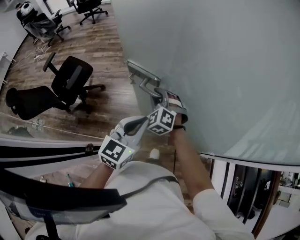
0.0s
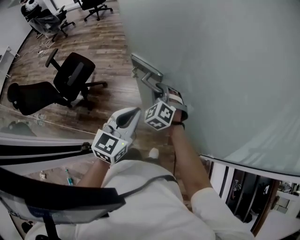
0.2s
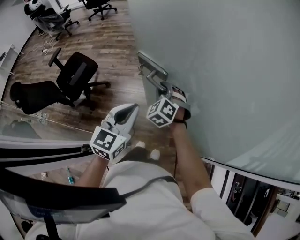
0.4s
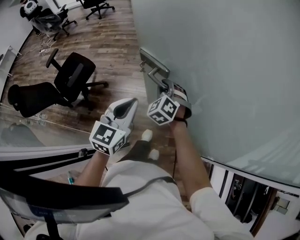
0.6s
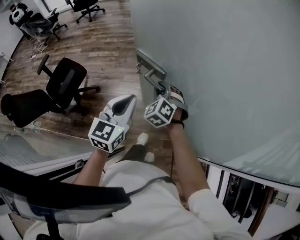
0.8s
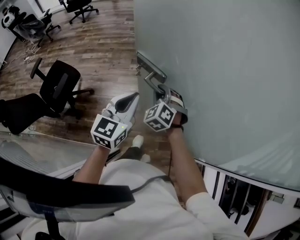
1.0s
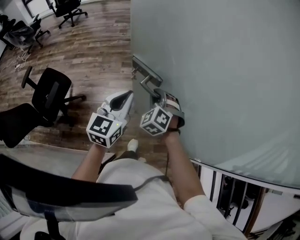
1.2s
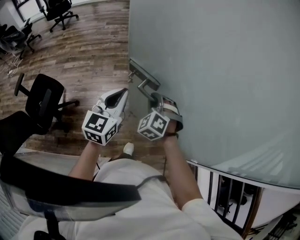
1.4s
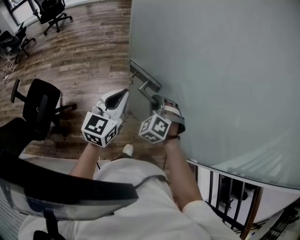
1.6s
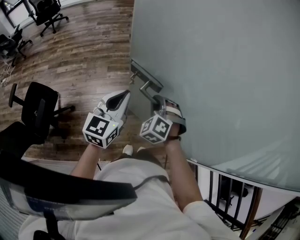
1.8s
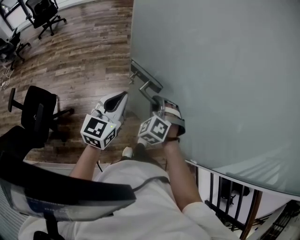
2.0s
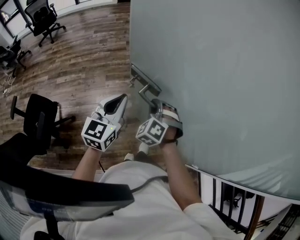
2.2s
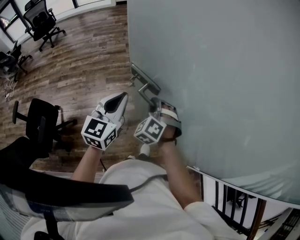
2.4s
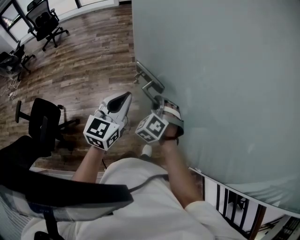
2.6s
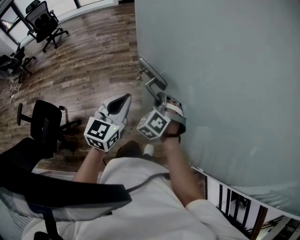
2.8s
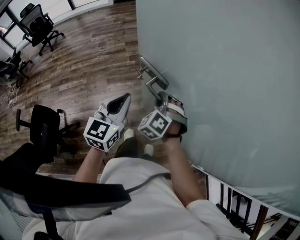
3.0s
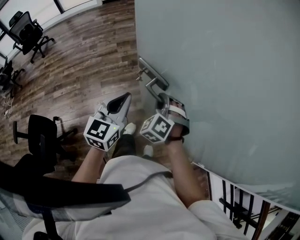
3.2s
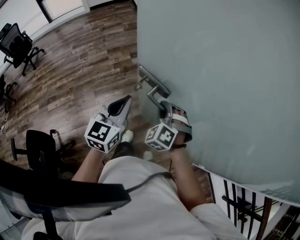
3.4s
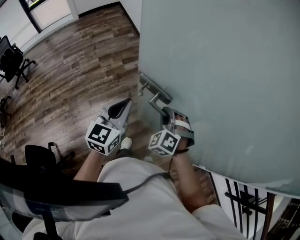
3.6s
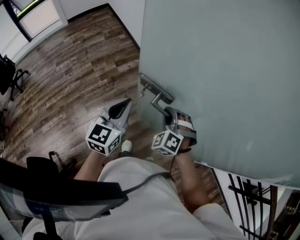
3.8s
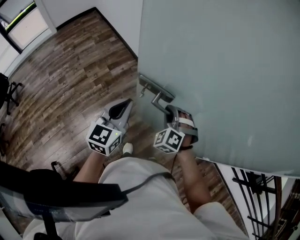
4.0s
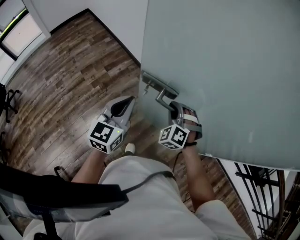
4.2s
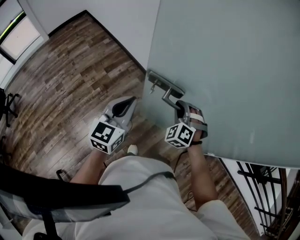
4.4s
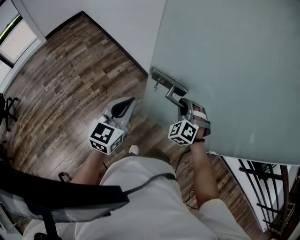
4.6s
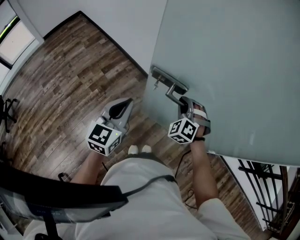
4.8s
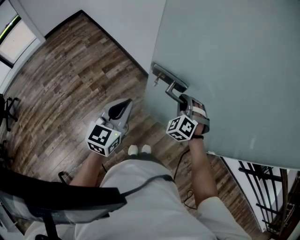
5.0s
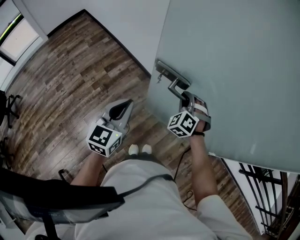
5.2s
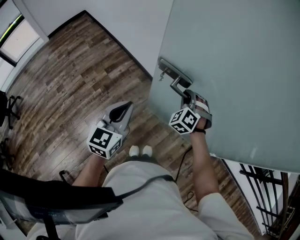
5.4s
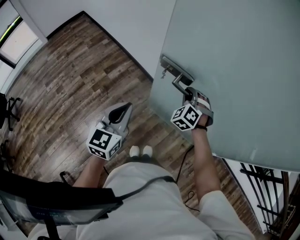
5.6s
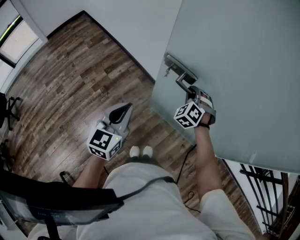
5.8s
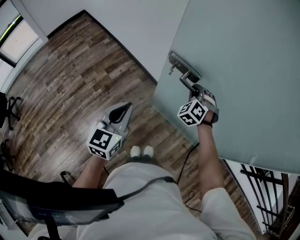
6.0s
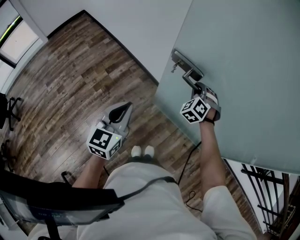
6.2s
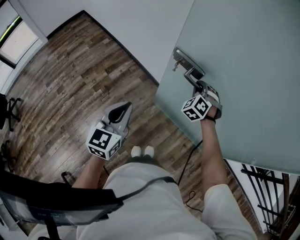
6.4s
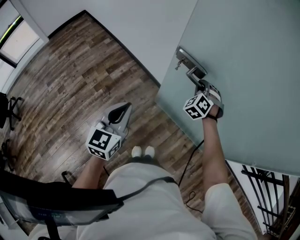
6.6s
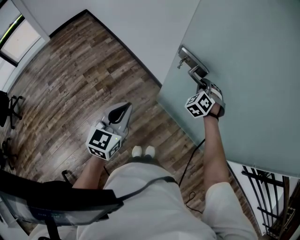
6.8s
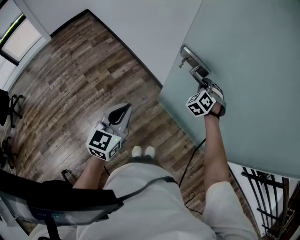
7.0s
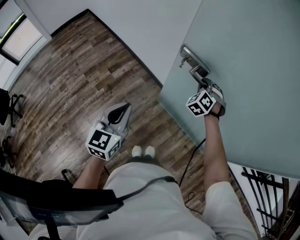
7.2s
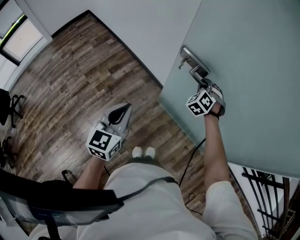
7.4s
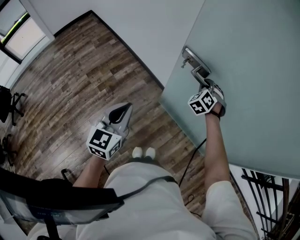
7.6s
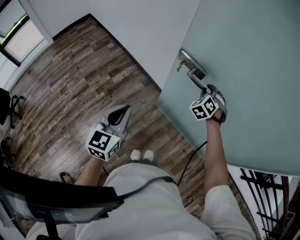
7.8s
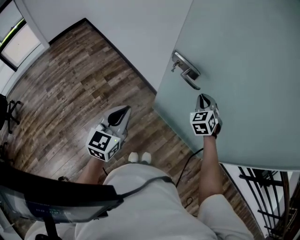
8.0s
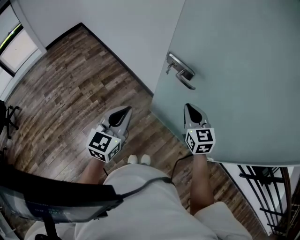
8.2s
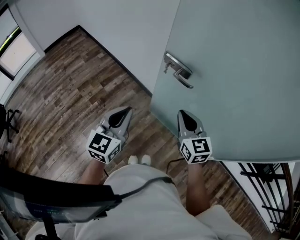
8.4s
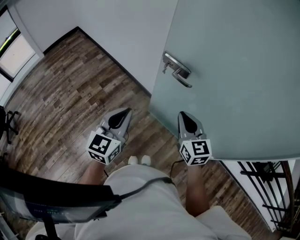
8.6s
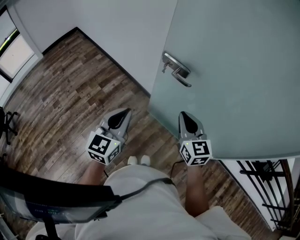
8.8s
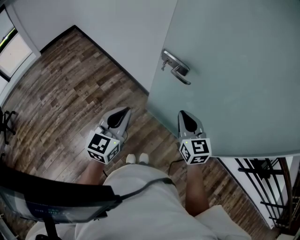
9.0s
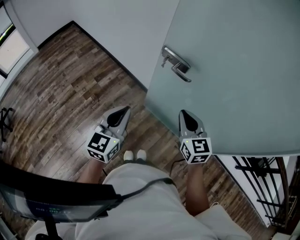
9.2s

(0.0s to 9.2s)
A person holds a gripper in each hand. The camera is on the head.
0.0s - 1.6s: The left gripper heads forward, covering some 30 cm; the right gripper goes approximately 20 cm forward and to the right, and swivels about 20 degrees.
1.6s - 3.0s: Both grippers move forward and to the right, approximately 25 cm.
3.0s - 4.6s: The right gripper moves about 15 cm, and swivels some 30 degrees, while the left gripper changes place by roughly 20 cm, and swivels roughly 40 degrees.
4.6s - 6.2s: The right gripper shifts some 15 cm forward.
6.2s - 7.6s: The right gripper shifts roughly 5 cm forward.
7.6s - 9.2s: The right gripper goes approximately 30 cm backward and upward, and rotates around the line of its fingers by roughly 50 degrees, clockwise from behind. The left gripper changes place by about 5 cm.

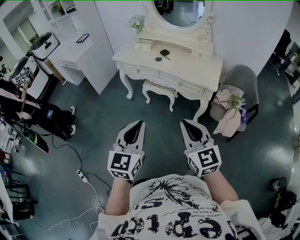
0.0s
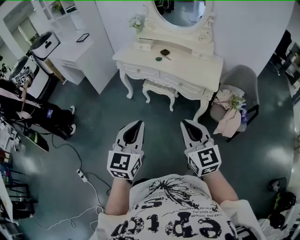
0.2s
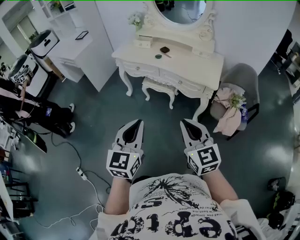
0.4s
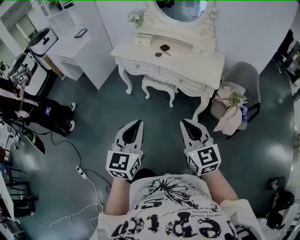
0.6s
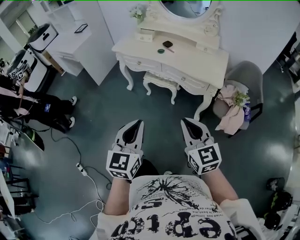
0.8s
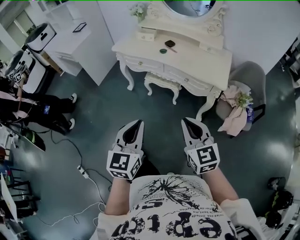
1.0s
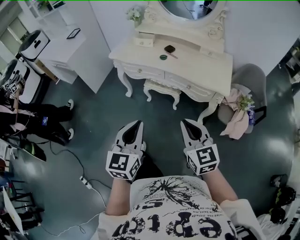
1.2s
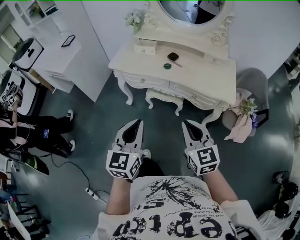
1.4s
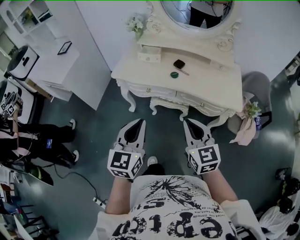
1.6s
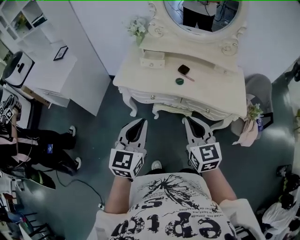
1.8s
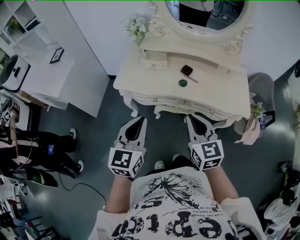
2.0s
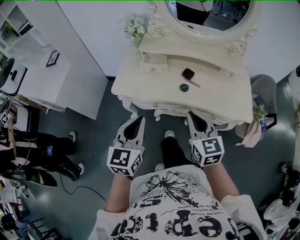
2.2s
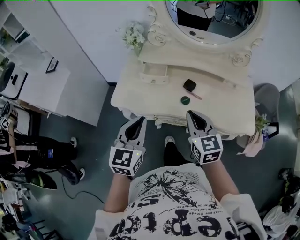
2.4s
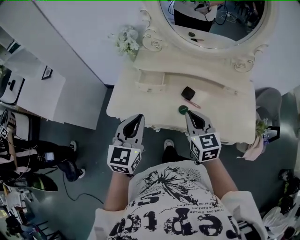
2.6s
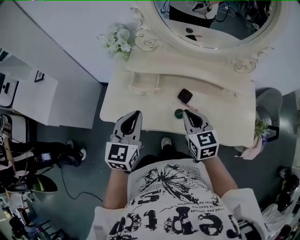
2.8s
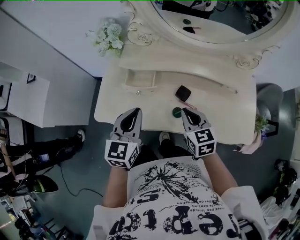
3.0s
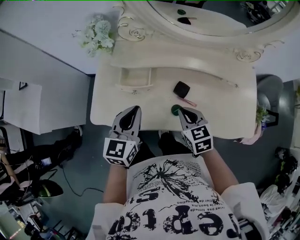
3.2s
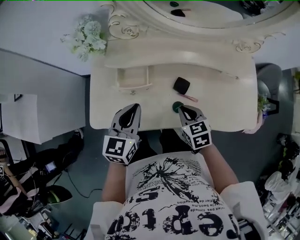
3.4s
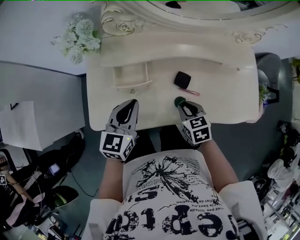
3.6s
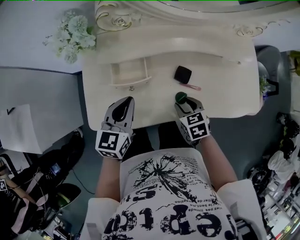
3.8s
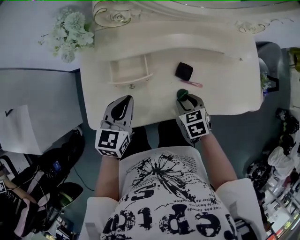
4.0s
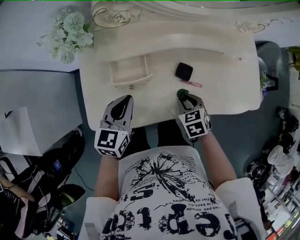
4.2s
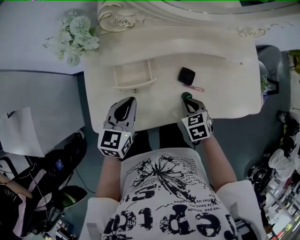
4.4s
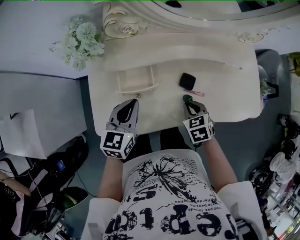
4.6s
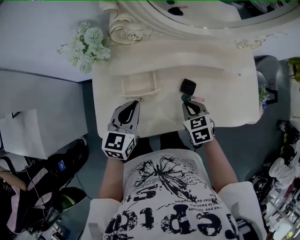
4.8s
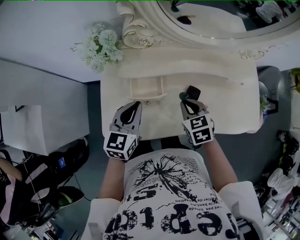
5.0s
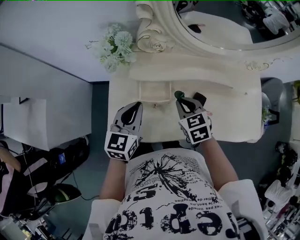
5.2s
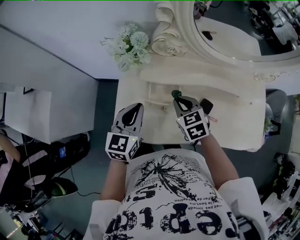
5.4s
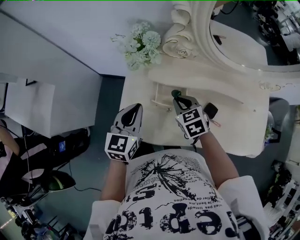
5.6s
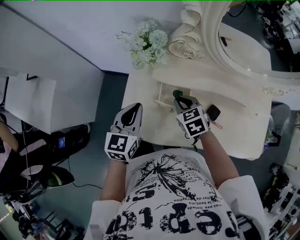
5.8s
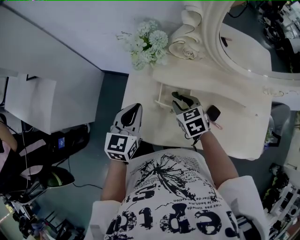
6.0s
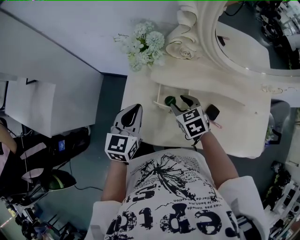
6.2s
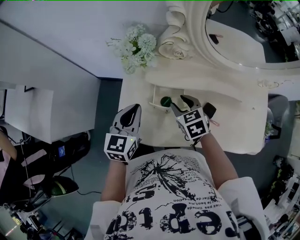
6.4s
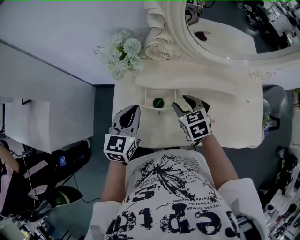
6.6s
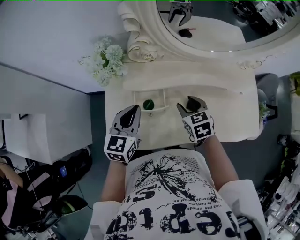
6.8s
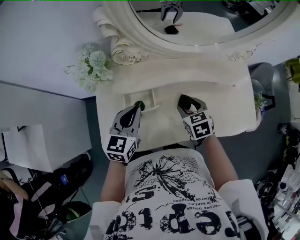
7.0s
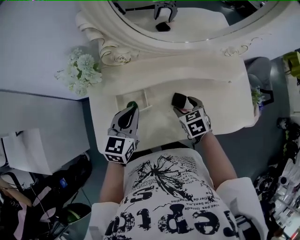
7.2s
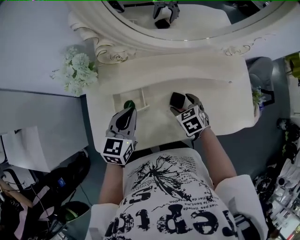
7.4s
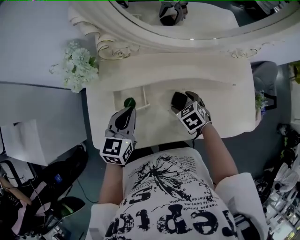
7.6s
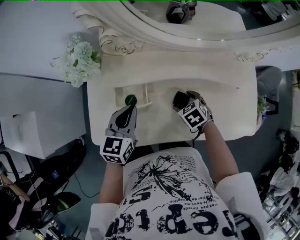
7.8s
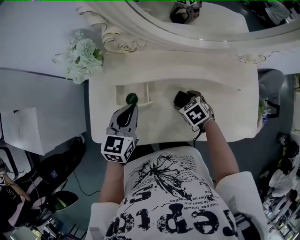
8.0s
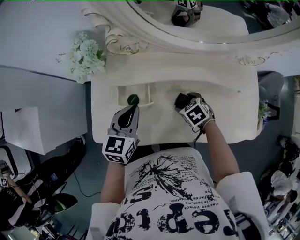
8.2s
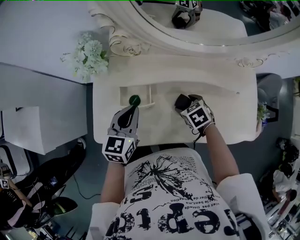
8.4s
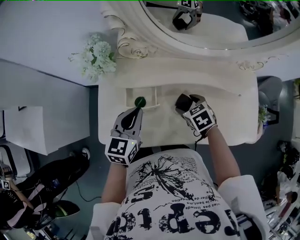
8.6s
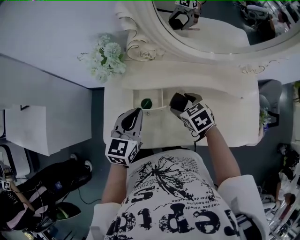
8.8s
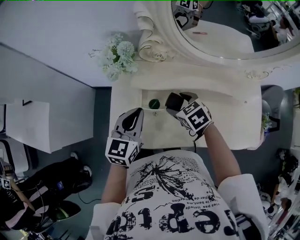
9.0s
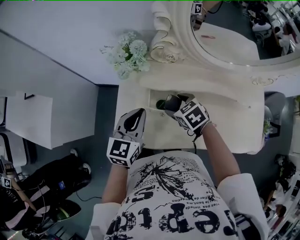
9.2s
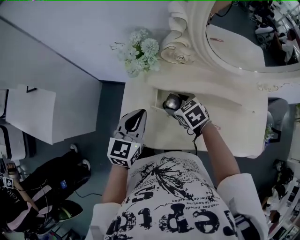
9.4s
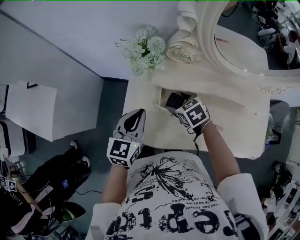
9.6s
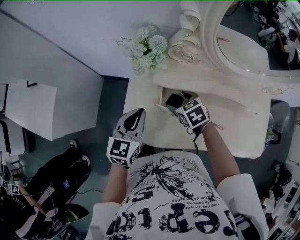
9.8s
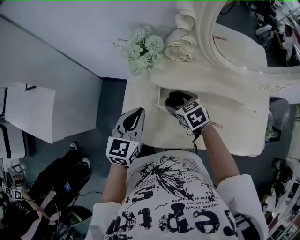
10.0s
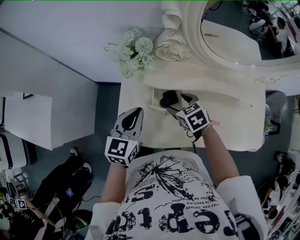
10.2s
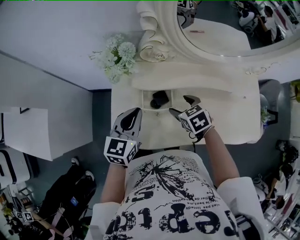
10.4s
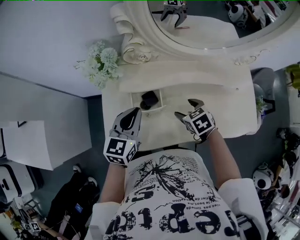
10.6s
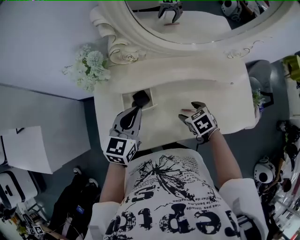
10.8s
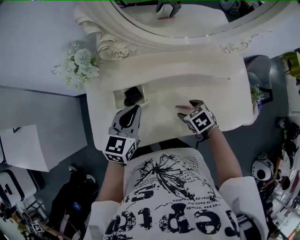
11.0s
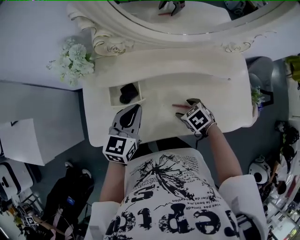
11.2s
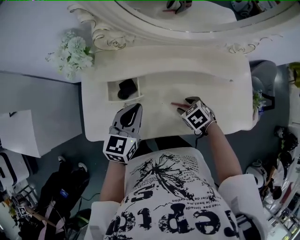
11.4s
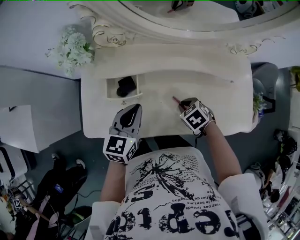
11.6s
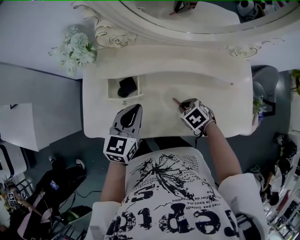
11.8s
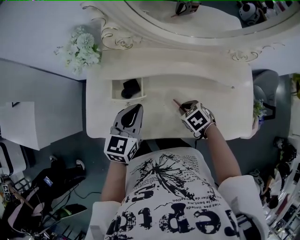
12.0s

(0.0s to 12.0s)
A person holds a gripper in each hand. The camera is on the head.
0.0s - 1.6s: Both grippers travel together forward and to the left, some 35 cm.
1.6s - 3.0s: Both grippers move forward, some 40 cm.
3.0s - 4.4s: The left gripper is displaced downward and forward by approximately 10 cm, and rotates roughly 20 degrees; the right gripper is displaced downward by about 15 cm, changes its angle by approximately 30 degrees, and opens, then closes once more.
4.4s - 6.0s: The left gripper ends up roughly 15 cm from where it was, and rotates about 20 degrees. The right gripper ends up about 25 cm from where it was, and turns by roughly 20 degrees.
6.0s - 7.6s: The left gripper ends up some 15 cm from where it was; the right gripper changes place by some 20 cm, and opens up.
7.6s - 9.0s: The left gripper goes about 10 cm to the left and upward, while the right gripper is displaced to the left and upward by about 15 cm.
9.0s - 10.4s: The left gripper goes to the left and returns, some 10 cm each way. Meanwhile the right gripper goes to the left and returns, approximately 5 cm each way.
10.4s - 12.0s: The right gripper shifts about 20 cm to the right, backward and downward, and closes up; the left gripper shifts about 15 cm to the right.

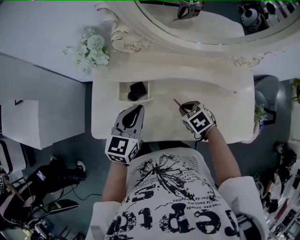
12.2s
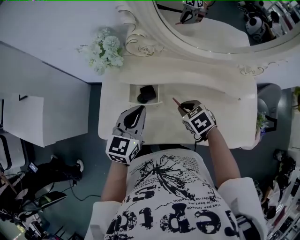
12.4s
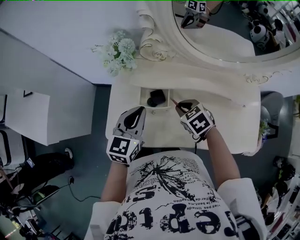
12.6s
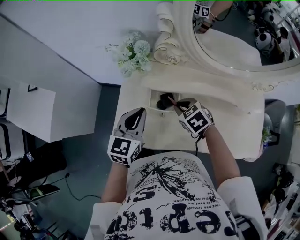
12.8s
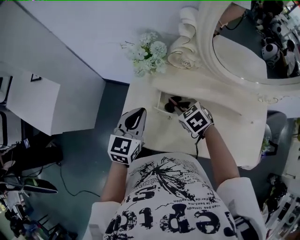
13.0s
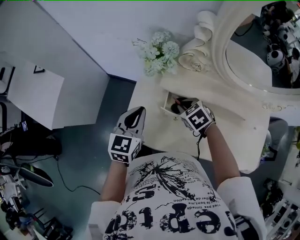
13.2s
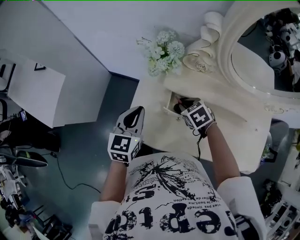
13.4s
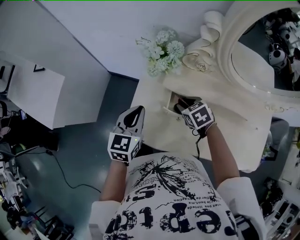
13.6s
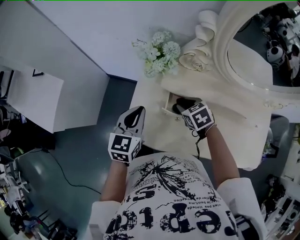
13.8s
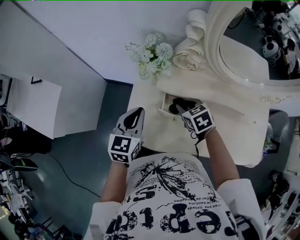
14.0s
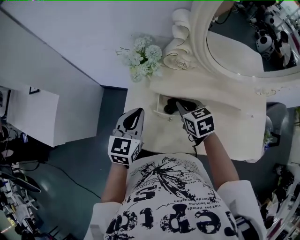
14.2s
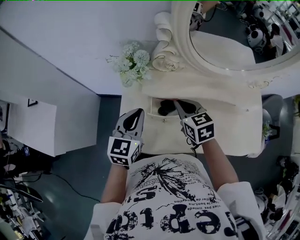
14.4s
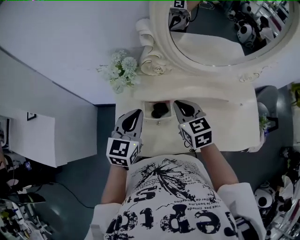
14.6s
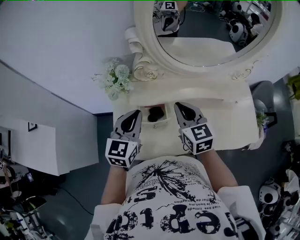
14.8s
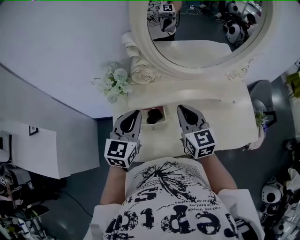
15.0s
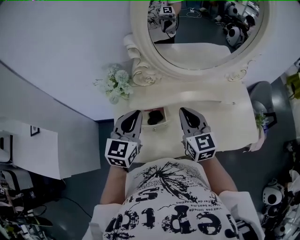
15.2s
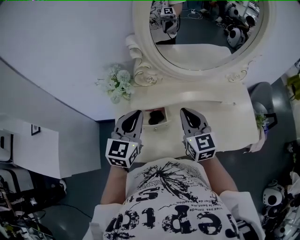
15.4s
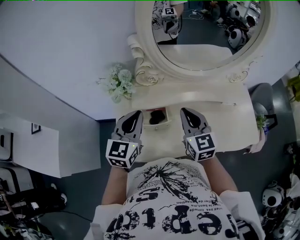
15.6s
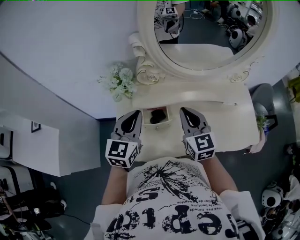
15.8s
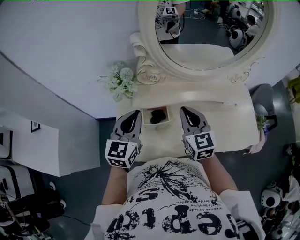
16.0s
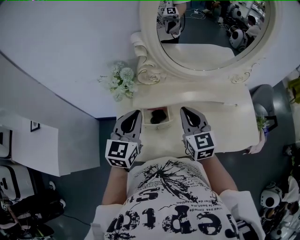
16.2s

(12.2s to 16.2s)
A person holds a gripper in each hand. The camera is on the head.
12.2s - 13.6s: The left gripper heads to the left, covering about 20 cm, while the right gripper shifts approximately 25 cm to the left and forward.
13.6s - 14.8s: The right gripper travels upward by some 15 cm, angles its fingers upward, by roughly 40 degrees, and closes its fingers, while the left gripper changes place by roughly 15 cm, and rotates about 20 degrees.
14.8s - 16.2s: The grippers make only small movements.
